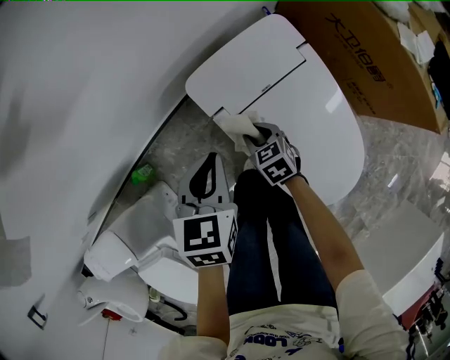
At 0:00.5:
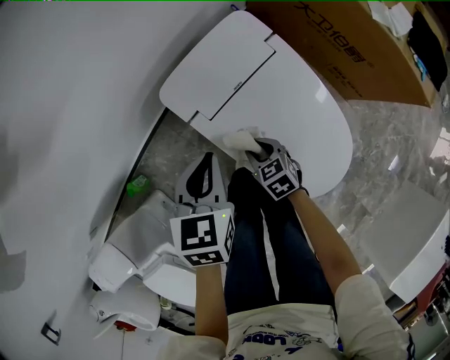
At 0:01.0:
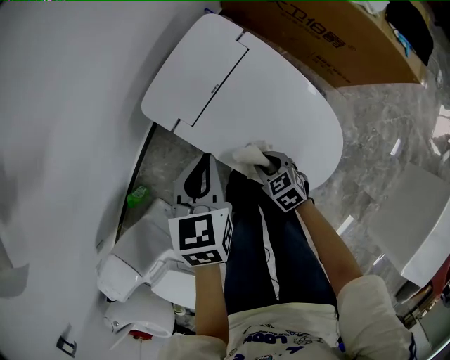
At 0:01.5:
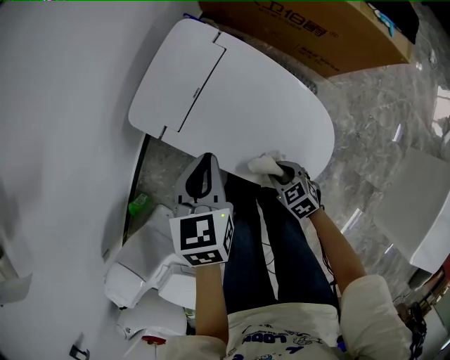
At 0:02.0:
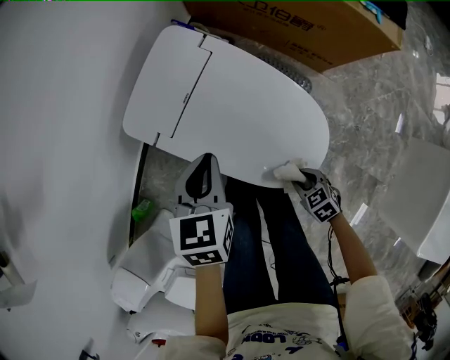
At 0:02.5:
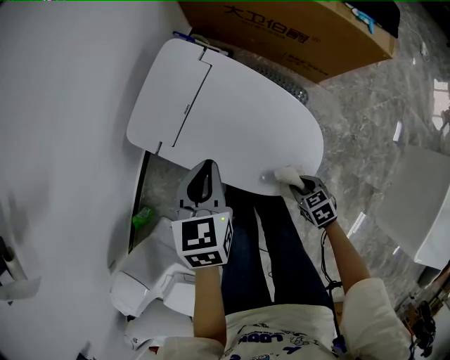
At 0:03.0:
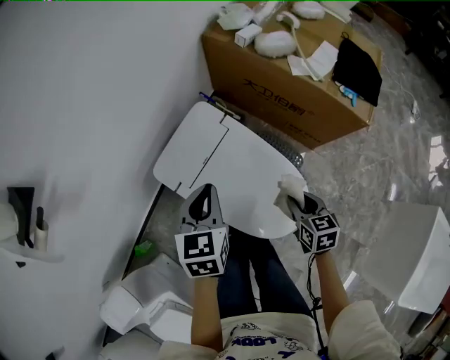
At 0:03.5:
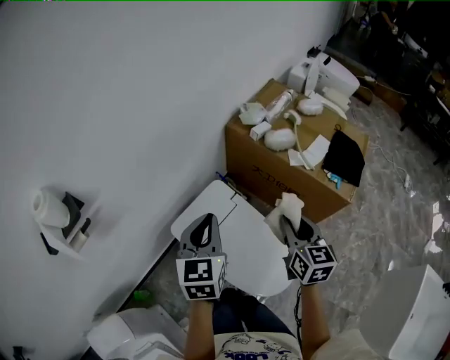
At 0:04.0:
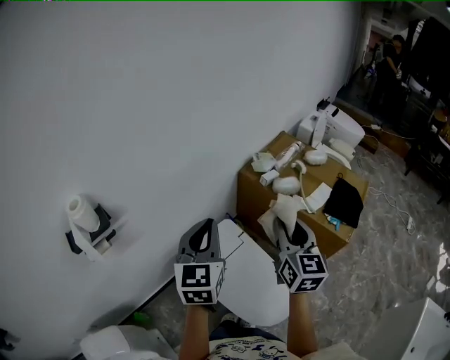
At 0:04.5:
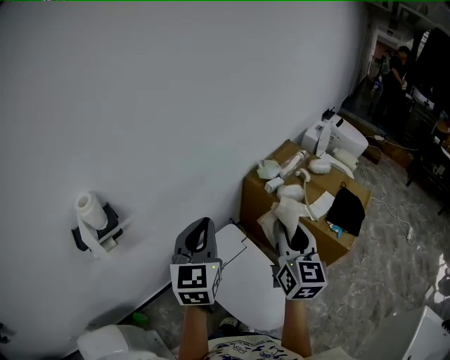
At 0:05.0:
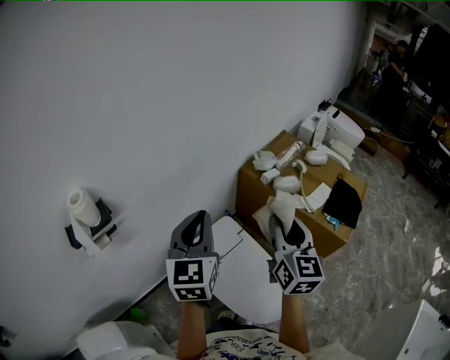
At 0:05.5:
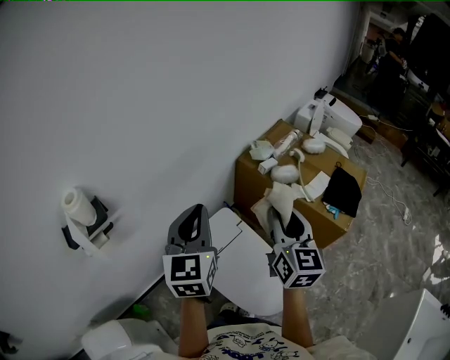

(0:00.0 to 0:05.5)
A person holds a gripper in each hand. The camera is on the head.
0:00.0 - 0:02.0: The right gripper goes some 40 cm backward and to the right. The left gripper is displaced to the right by about 20 cm, and changes its angle by approximately 20 degrees.
0:02.0 - 0:03.5: The left gripper heads upward, covering some 35 cm, and swivels approximately 30 degrees, while the right gripper moves upward and forward, about 60 cm, and points its fingers approximately 40 degrees further upward.
0:03.5 - 0:05.5: The grippers both shift upward by some 15 cm.

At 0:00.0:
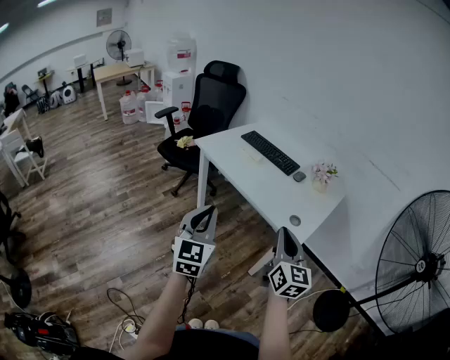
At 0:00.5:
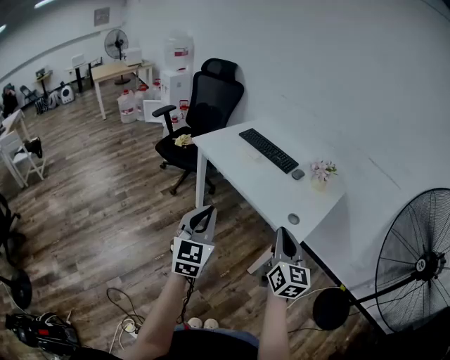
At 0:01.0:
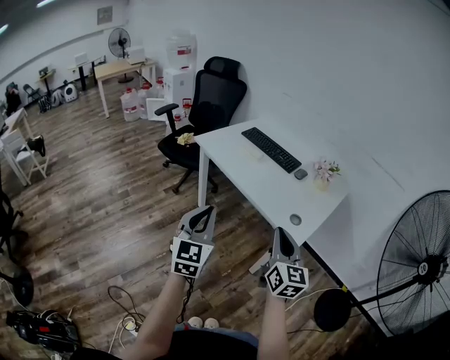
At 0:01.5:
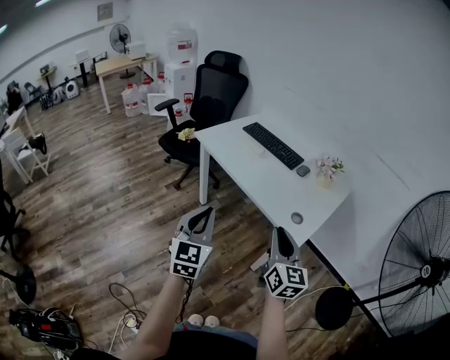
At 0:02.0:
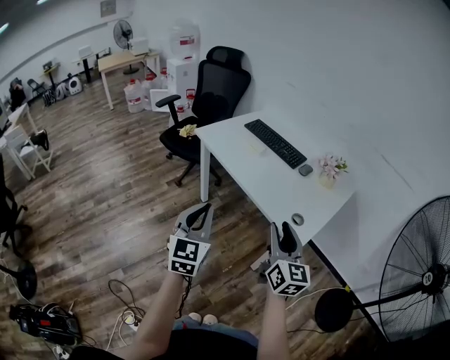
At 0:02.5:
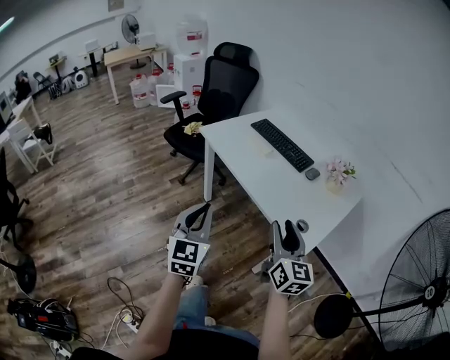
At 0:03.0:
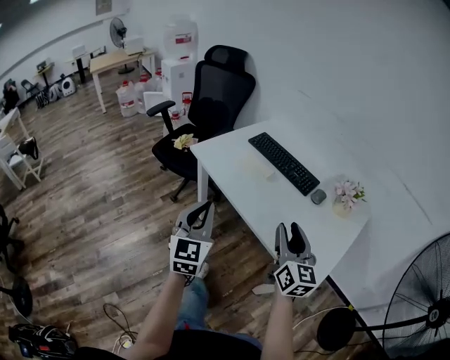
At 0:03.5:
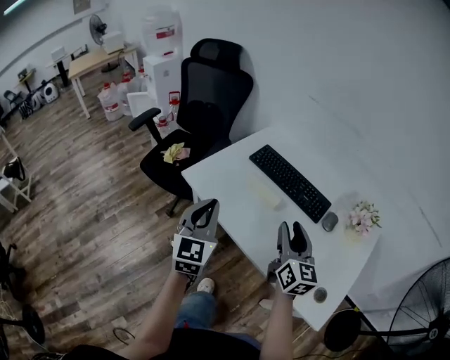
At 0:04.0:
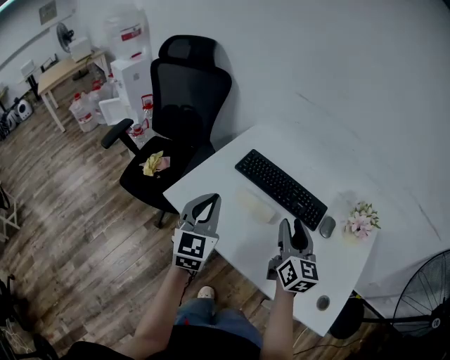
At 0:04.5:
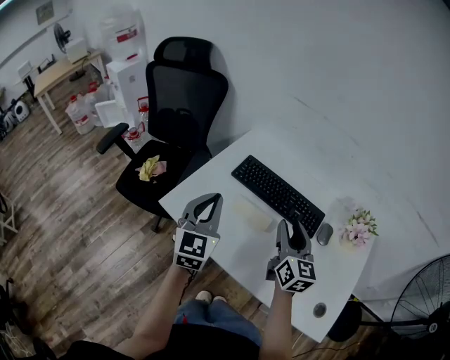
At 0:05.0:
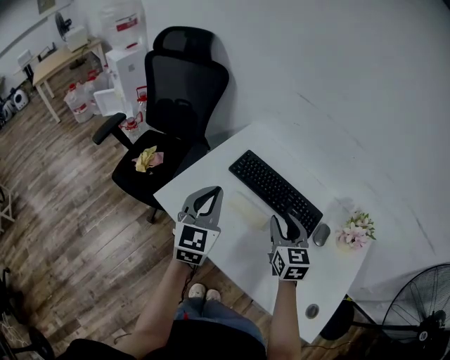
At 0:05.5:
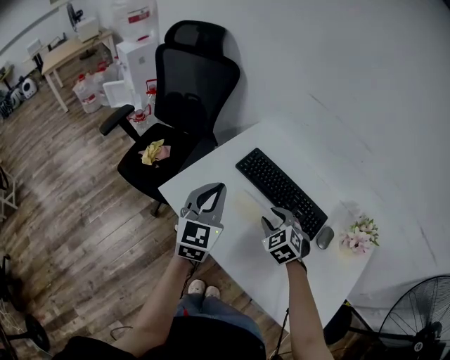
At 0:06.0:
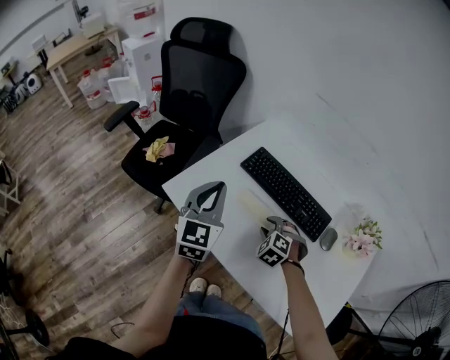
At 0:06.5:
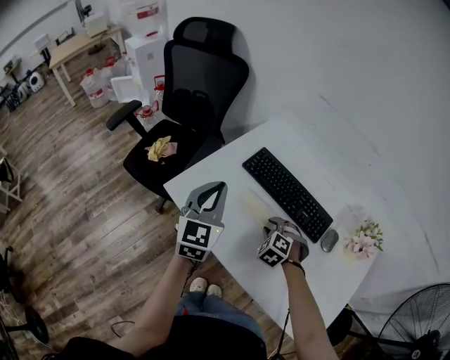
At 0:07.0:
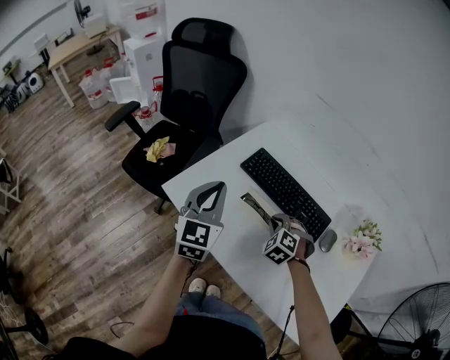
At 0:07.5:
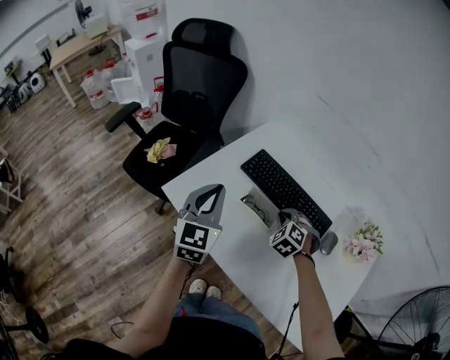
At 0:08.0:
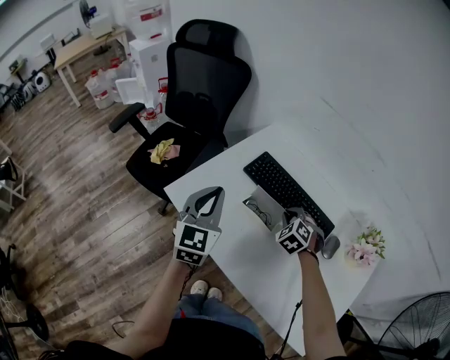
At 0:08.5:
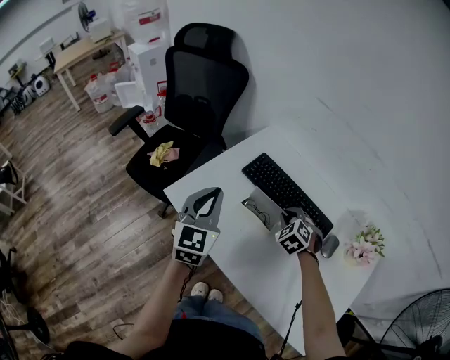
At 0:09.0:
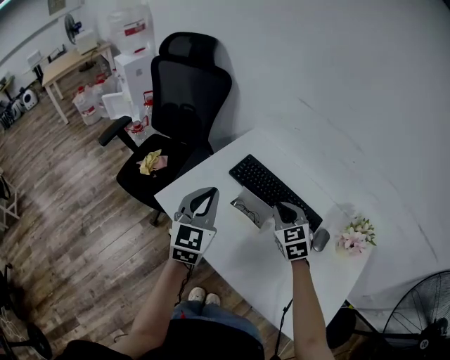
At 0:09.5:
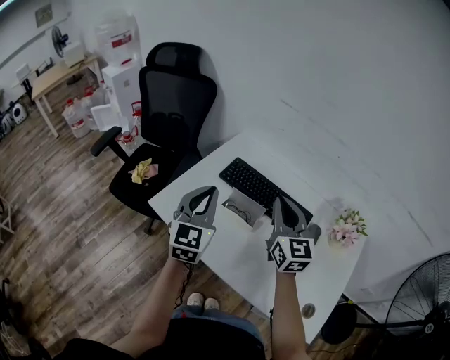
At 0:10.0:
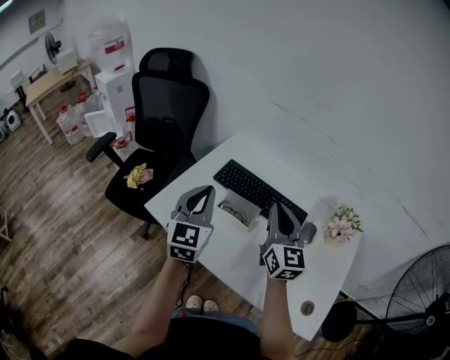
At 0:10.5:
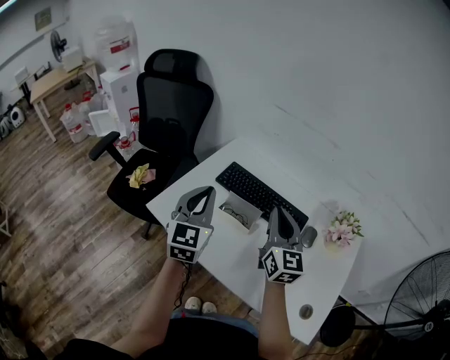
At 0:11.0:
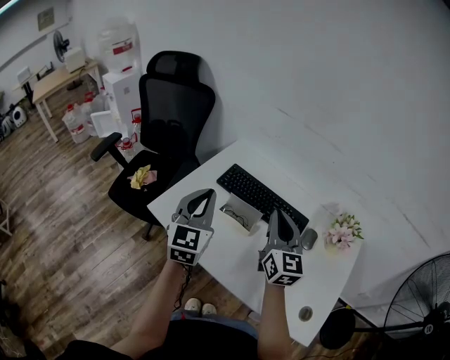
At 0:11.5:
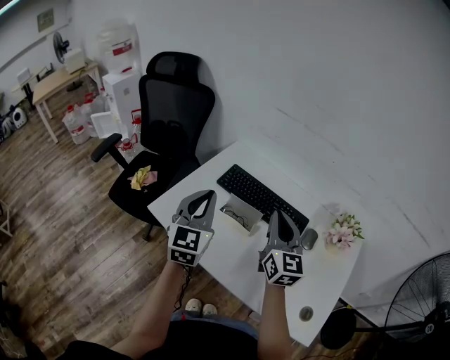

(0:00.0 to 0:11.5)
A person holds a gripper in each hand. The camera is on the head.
0:00.0 - 0:02.0: The left gripper shifts by about 5 cm. The right gripper is displaced forward by about 5 cm, and opens up.
0:02.0 - 0:04.0: The pair of grippers is taken forward, approximately 50 cm.
0:04.0 - 0:06.0: The left gripper moves forward, about 5 cm, while the right gripper moves downward, some 20 cm, and tips its fingers downward by some 50 degrees.
0:06.0 - 0:07.5: The right gripper moves forward, approximately 5 cm, and closes.
0:07.5 - 0:09.5: The left gripper moves roughly 5 cm. Meanwhile the right gripper heads upward, covering approximately 20 cm, and points its fingers about 50 degrees further upward.
0:09.5 - 0:11.5: The grippers make only small movements.

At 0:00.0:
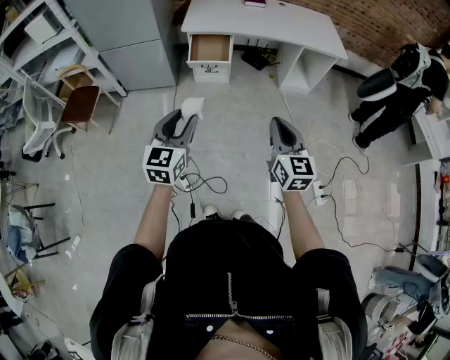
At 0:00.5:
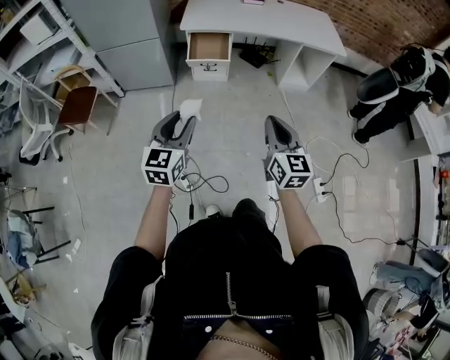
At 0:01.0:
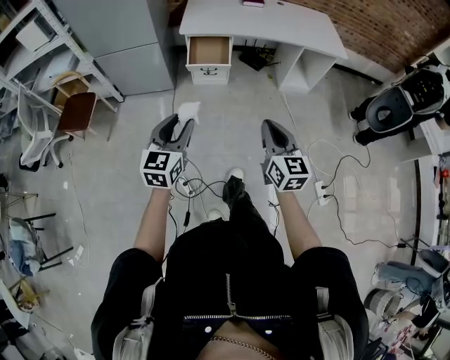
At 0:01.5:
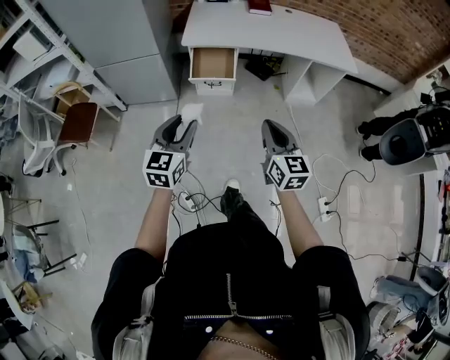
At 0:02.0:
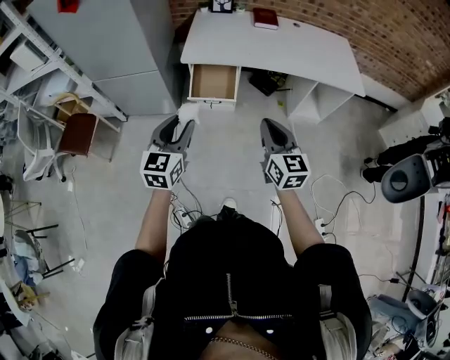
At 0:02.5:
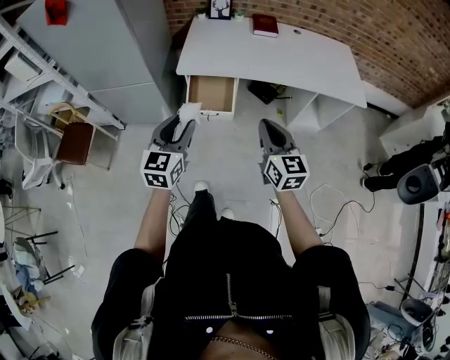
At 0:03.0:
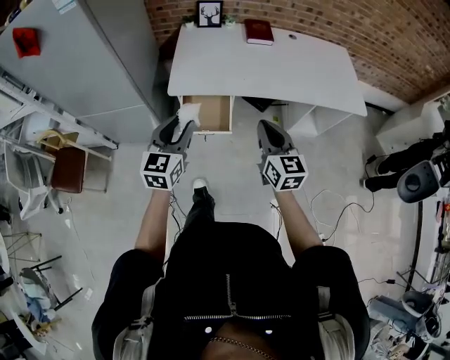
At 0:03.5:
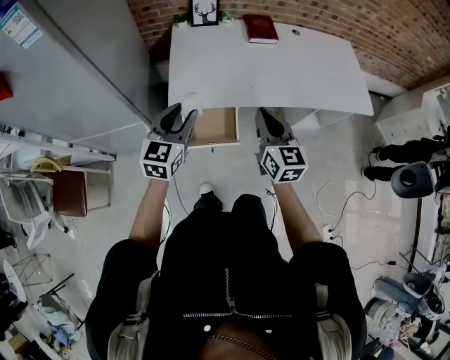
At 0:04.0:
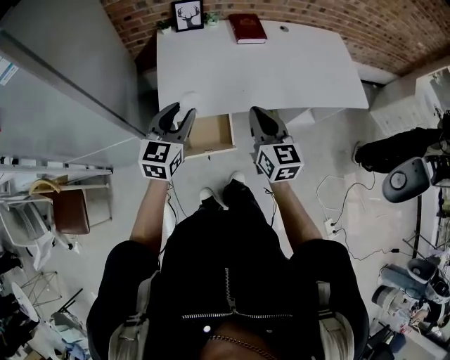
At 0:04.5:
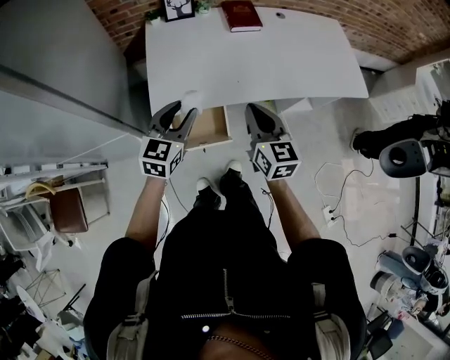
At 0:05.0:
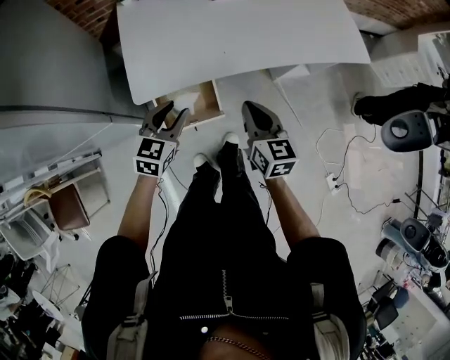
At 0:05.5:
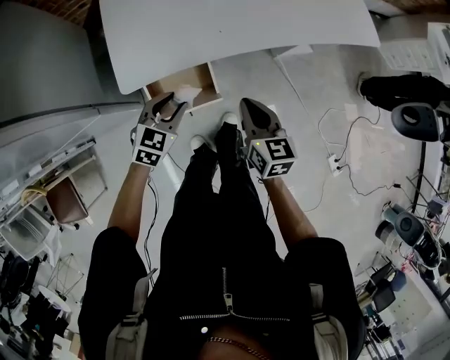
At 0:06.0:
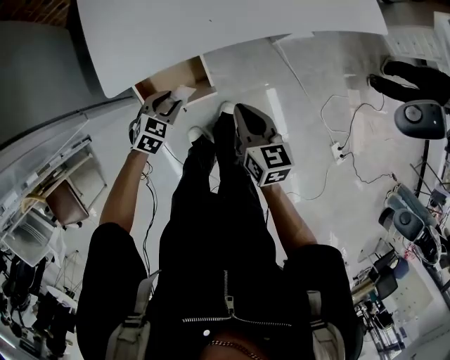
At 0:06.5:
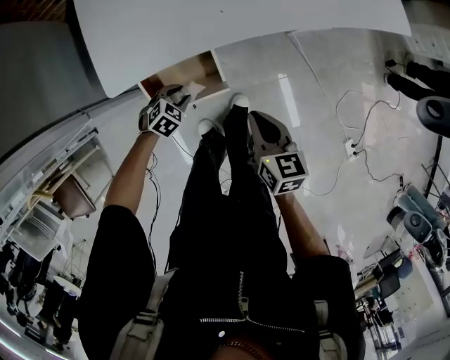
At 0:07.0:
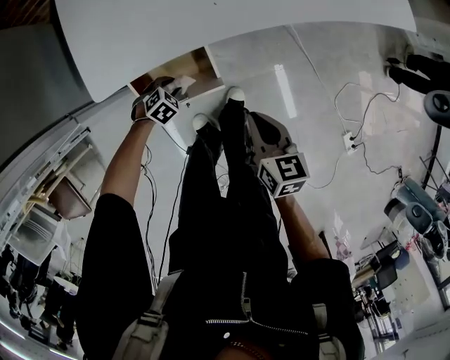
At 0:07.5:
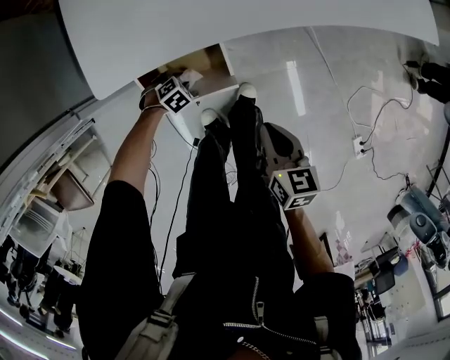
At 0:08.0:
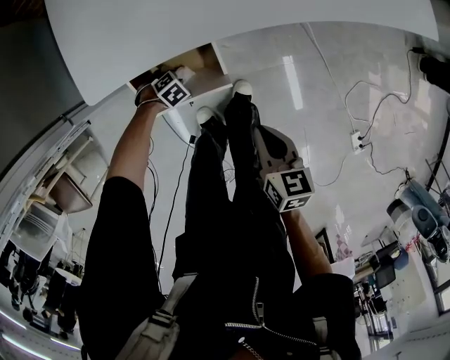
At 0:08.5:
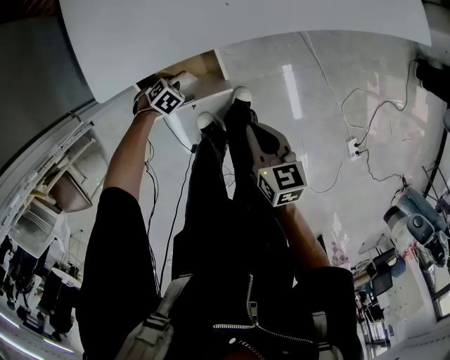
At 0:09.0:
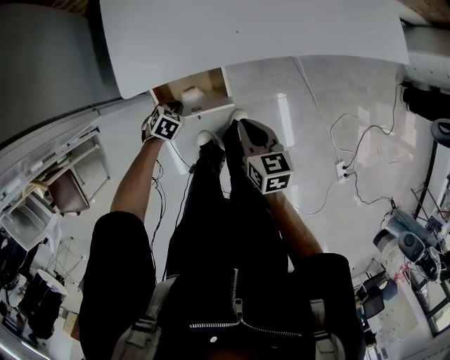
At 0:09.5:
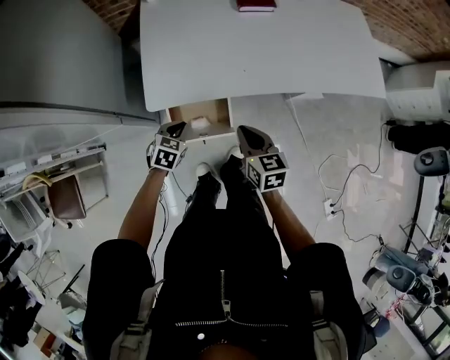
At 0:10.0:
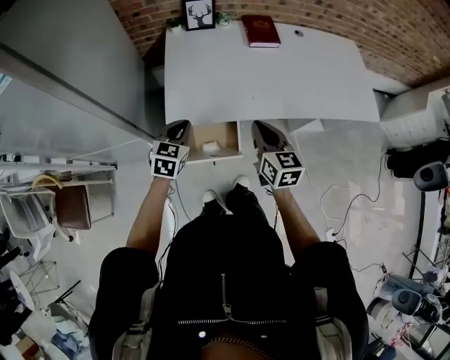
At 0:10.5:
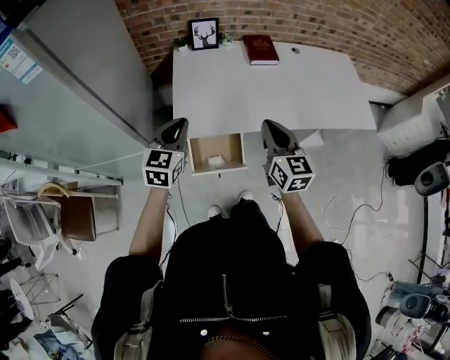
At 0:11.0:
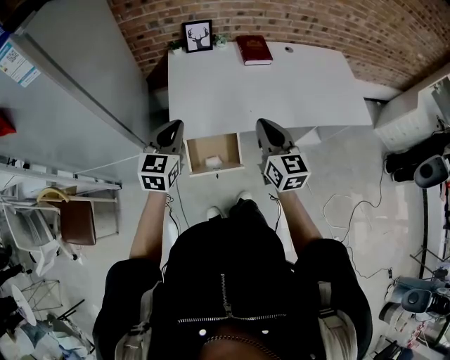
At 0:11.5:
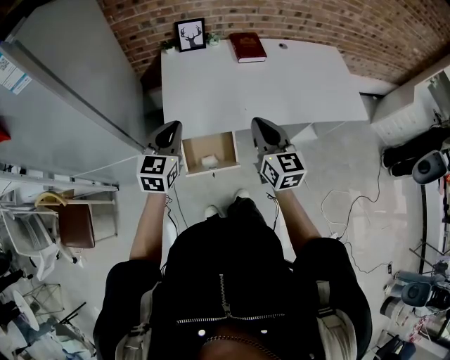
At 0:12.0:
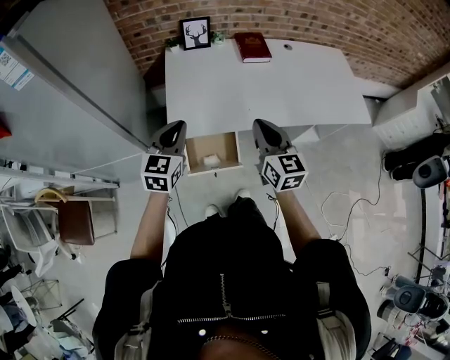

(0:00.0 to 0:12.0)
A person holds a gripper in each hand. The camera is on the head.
0:00.0 - 0:02.0: The grippers both shift forward by roughly 30 cm.
0:02.0 - 0:04.0: The two grippers go roughly 40 cm forward.
0:04.0 - 0:06.0: The right gripper is displaced downward by about 20 cm, and turns by about 30 degrees; the left gripper moves downward, some 30 cm, and points its fingers roughly 40 degrees further downward.
0:06.0 - 0:08.0: The right gripper shifts some 10 cm downward. The left gripper is displaced downward by some 25 cm, and points its fingers roughly 30 degrees further downward.
0:08.0 - 0:10.0: The left gripper travels upward by approximately 50 cm, tilts its fingers approximately 50 degrees upward, and closes its fingers. The right gripper shifts roughly 25 cm upward, and swivels roughly 30 degrees.
0:10.0 - 0:12.0: The left gripper moves upward, approximately 10 cm; the right gripper travels upward by about 10 cm.
